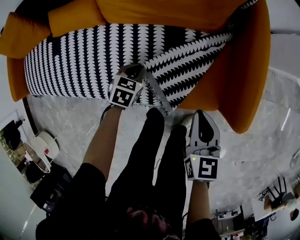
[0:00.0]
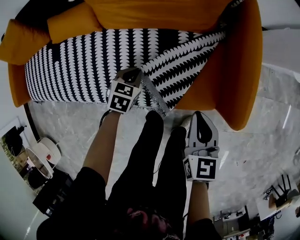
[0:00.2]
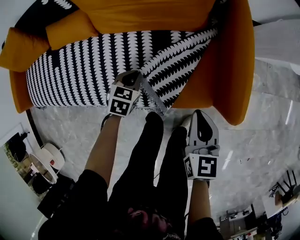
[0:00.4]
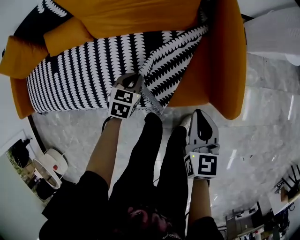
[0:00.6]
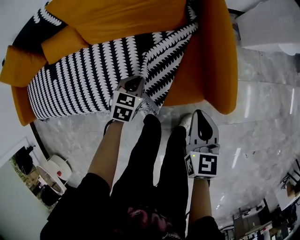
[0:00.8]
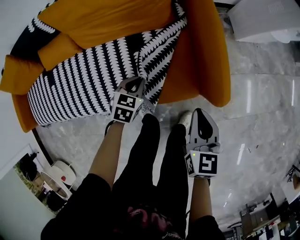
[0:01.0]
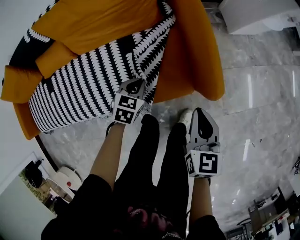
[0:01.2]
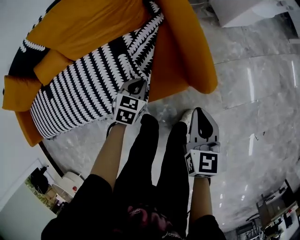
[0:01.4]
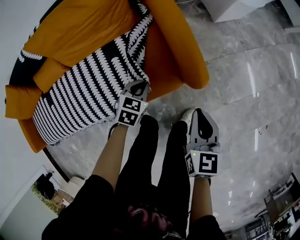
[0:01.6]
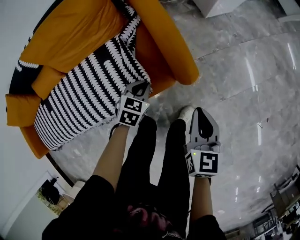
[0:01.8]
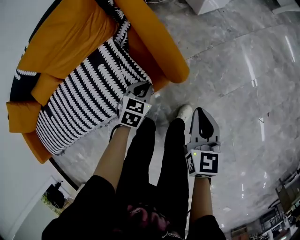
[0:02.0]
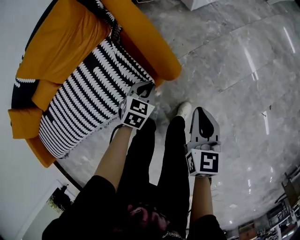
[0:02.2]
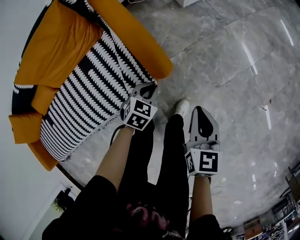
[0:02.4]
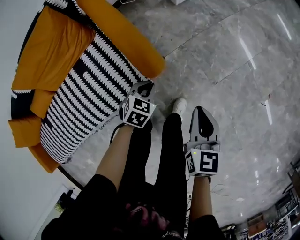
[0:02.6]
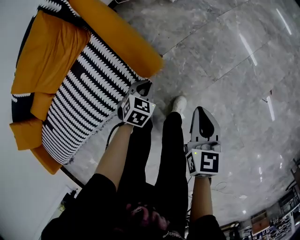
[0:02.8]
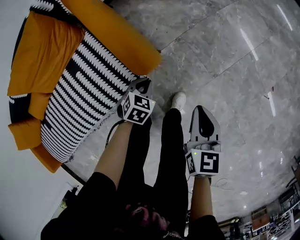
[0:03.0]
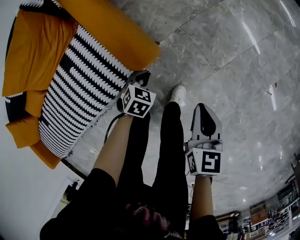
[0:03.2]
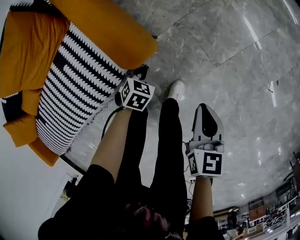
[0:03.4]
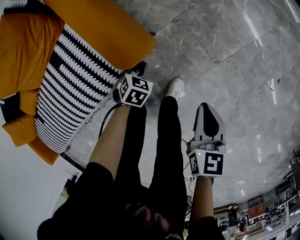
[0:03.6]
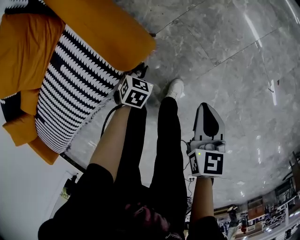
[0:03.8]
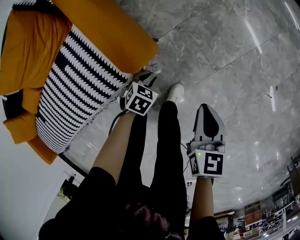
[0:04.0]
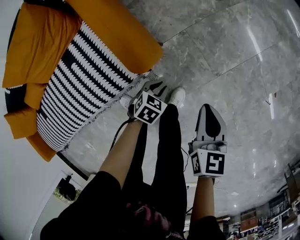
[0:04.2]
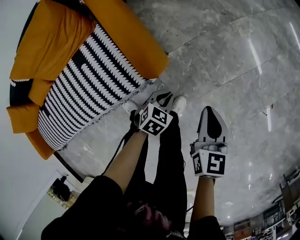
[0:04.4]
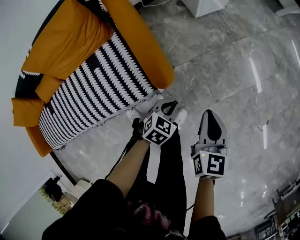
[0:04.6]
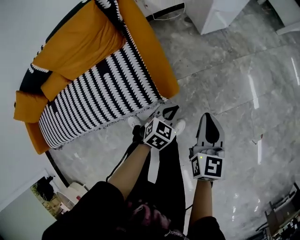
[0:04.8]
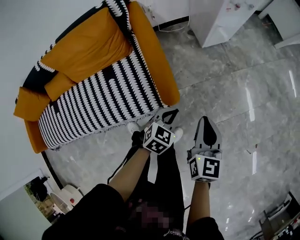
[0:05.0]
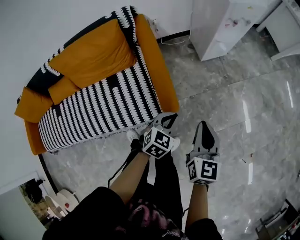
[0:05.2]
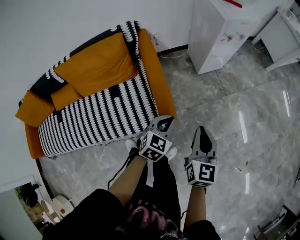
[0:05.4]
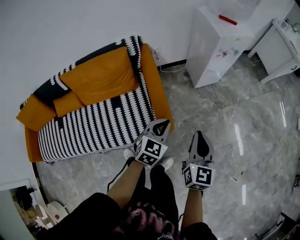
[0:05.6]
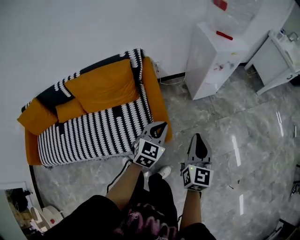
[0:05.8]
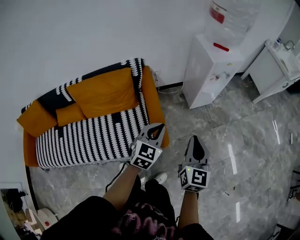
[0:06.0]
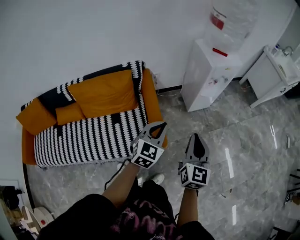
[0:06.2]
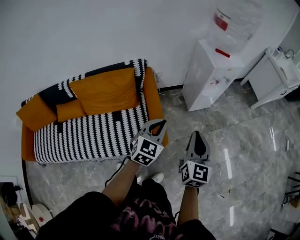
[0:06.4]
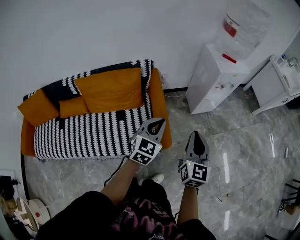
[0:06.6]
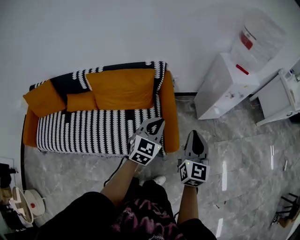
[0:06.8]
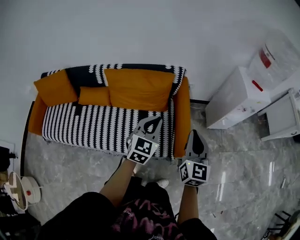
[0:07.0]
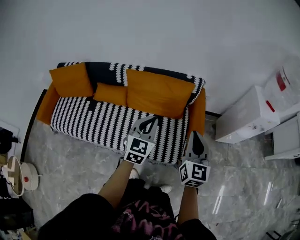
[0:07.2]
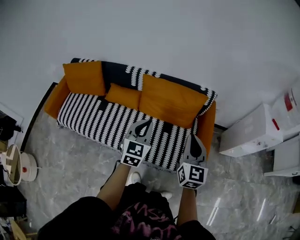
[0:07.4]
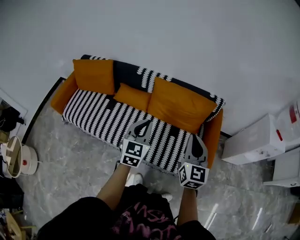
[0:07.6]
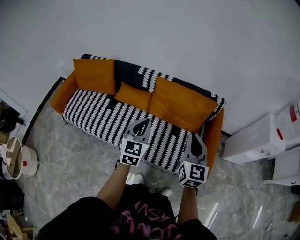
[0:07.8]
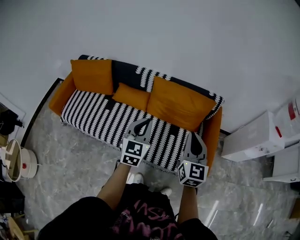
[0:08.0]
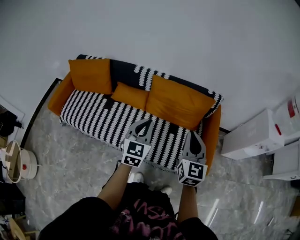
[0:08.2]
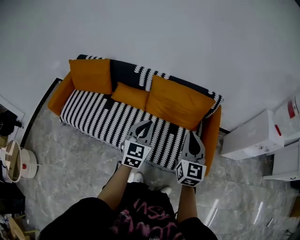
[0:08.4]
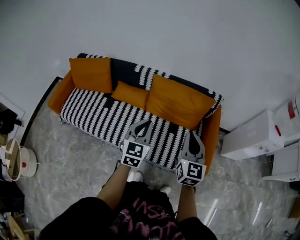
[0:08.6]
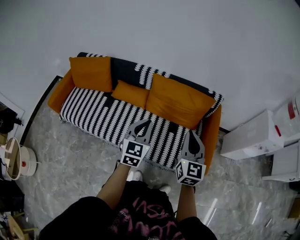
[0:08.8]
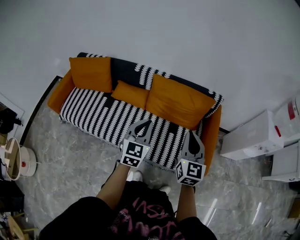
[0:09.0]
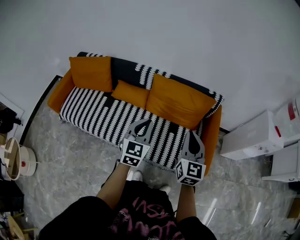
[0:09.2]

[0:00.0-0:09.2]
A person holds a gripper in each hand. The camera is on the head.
0:00.0 to 0:01.6: The left gripper ends up about 30 cm from where it was, and swivels roughly 30 degrees, while the right gripper moves approximately 25 cm, and rotates roughly 30 degrees.
0:01.6 to 0:03.0: Both grippers move to the right, some 20 cm. The left gripper turns by some 20 degrees.
0:03.0 to 0:04.6: The right gripper is displaced forward by some 5 cm; the left gripper travels upward and to the right by about 10 cm.
0:04.6 to 0:06.2: Both grippers travel together upward, approximately 35 cm. The left gripper points its fingers approximately 30 degrees further upward. The right gripper rotates about 20 degrees.
0:06.2 to 0:07.6: The two grippers travel together, roughly 50 cm. The right gripper swivels approximately 40 degrees, while the left gripper swivels roughly 50 degrees.
0:07.6 to 0:09.2: There are only small adjustments of the grippers.

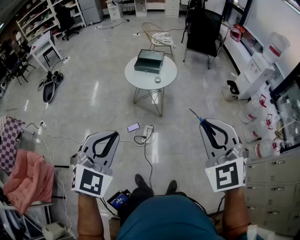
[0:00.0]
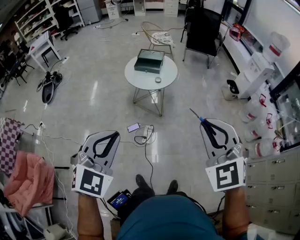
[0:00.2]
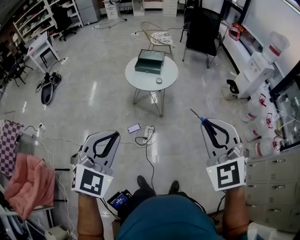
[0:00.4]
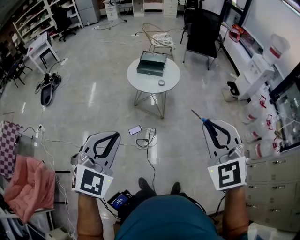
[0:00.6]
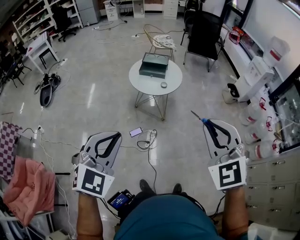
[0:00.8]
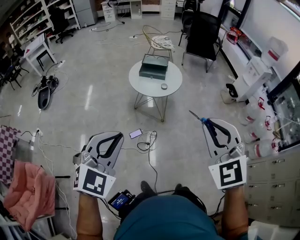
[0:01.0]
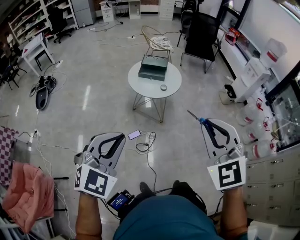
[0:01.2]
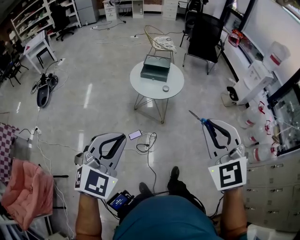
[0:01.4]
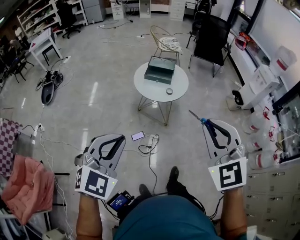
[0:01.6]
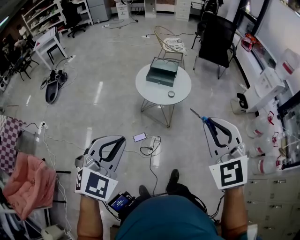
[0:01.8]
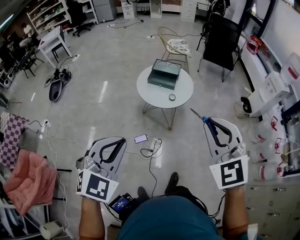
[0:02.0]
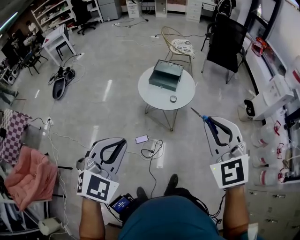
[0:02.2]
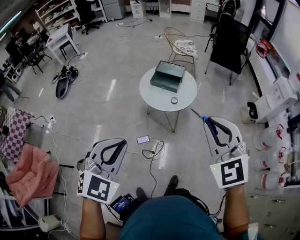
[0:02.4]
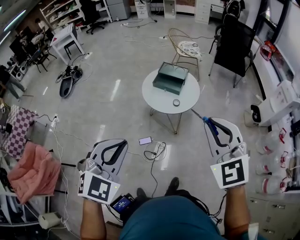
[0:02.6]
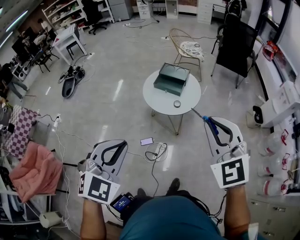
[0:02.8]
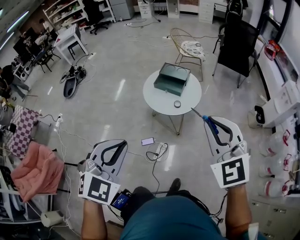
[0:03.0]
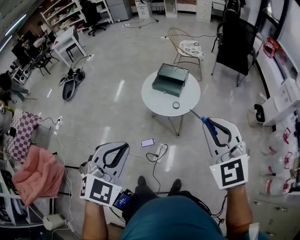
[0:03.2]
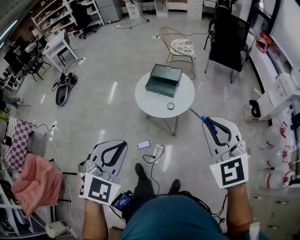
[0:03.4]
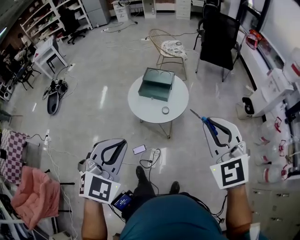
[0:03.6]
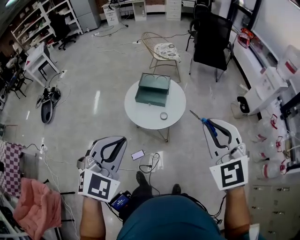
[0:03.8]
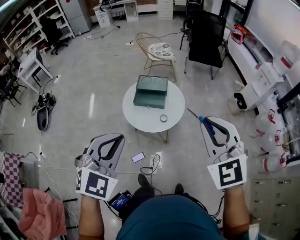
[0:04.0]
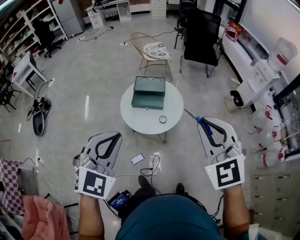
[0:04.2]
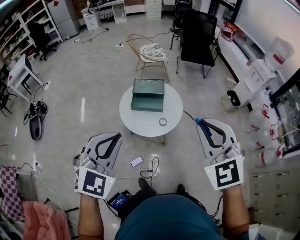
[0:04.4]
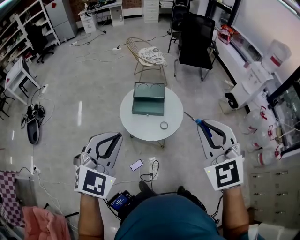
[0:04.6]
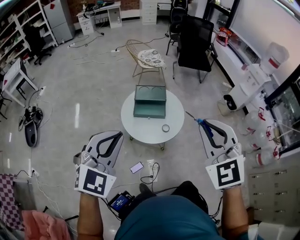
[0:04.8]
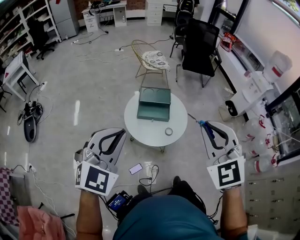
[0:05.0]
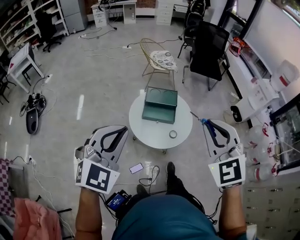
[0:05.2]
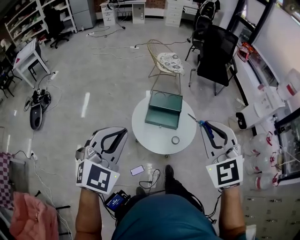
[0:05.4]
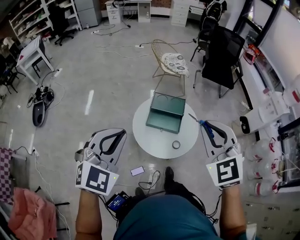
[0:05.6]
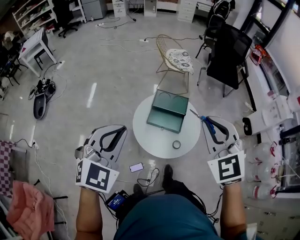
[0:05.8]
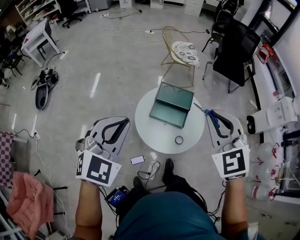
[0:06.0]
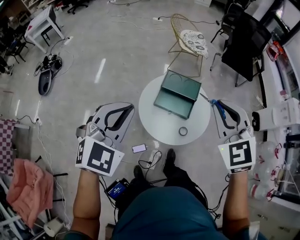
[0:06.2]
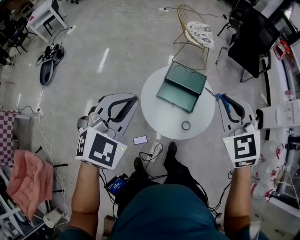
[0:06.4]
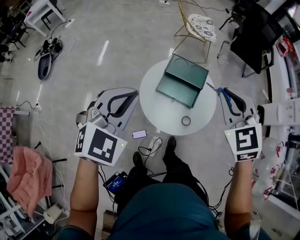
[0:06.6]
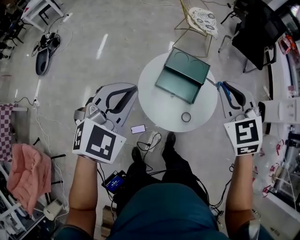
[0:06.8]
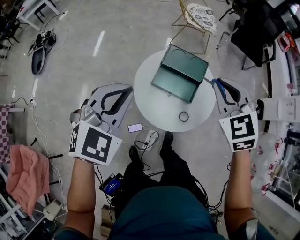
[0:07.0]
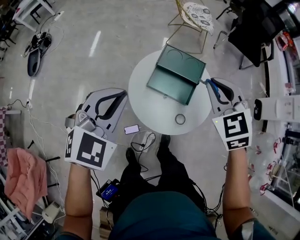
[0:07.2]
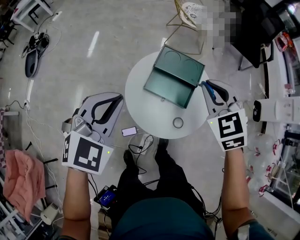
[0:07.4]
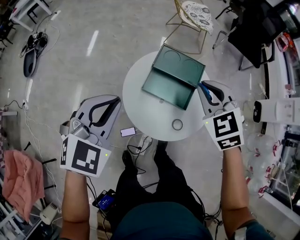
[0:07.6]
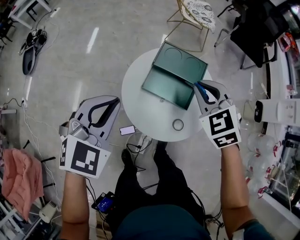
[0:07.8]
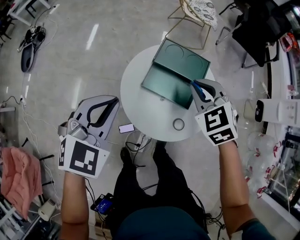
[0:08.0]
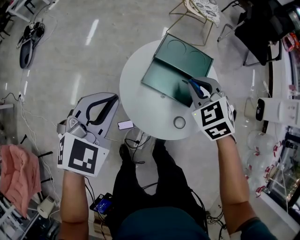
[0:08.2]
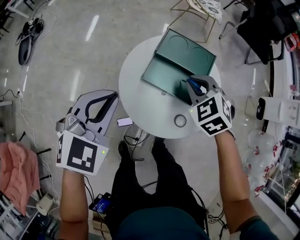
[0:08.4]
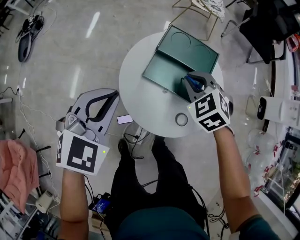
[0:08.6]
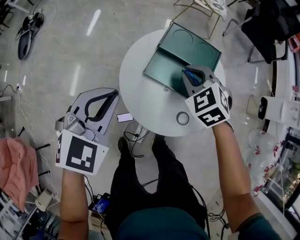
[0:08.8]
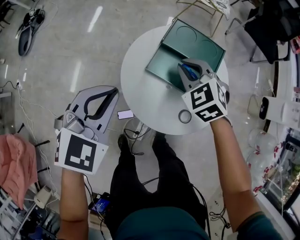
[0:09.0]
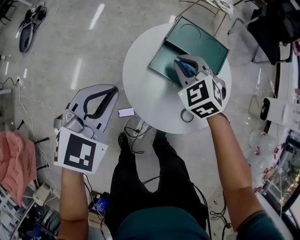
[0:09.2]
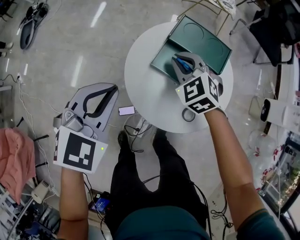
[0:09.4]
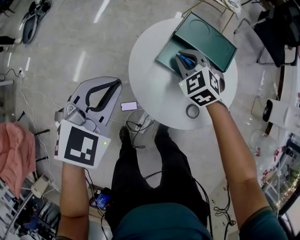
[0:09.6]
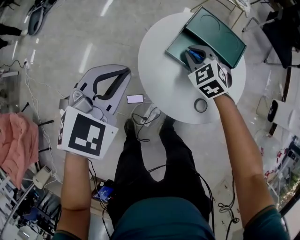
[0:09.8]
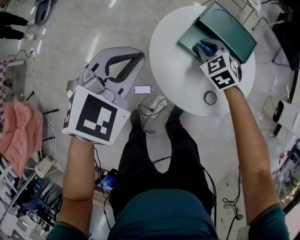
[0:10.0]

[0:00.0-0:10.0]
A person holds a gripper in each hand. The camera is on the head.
0:00.0 to 0:01.4: The two grippers go some 15 cm to the left and forward.
0:01.4 to 0:02.8: The left gripper heads to the right and forward, covering some 15 cm; the right gripper goes about 20 cm forward and to the right.
0:02.8 to 0:04.2: The left gripper shifts about 25 cm forward; the right gripper is displaced forward and to the left by roughly 15 cm.
0:04.2 to 0:05.8: Both grippers travel together forward and to the left, roughly 25 cm.
0:05.8 to 0:07.2: Both grippers travel together downward and forward, some 20 cm.
0:07.2 to 0:08.6: The right gripper is displaced downward by about 20 cm, and turns by some 20 degrees; the left gripper is displaced downward by roughly 15 cm.
0:08.6 to 0:10.0: The right gripper goes about 10 cm downward and to the left.

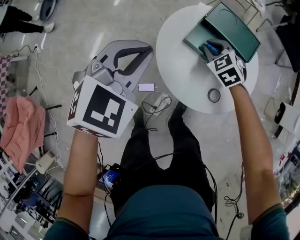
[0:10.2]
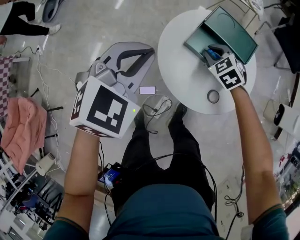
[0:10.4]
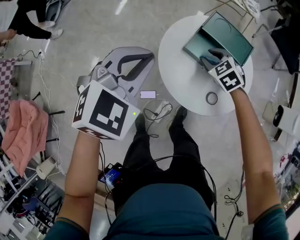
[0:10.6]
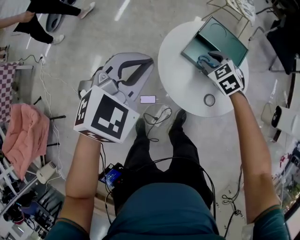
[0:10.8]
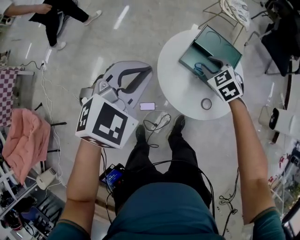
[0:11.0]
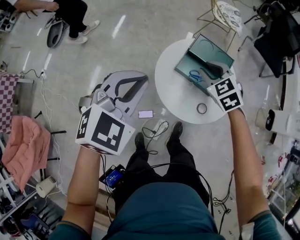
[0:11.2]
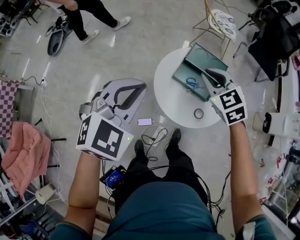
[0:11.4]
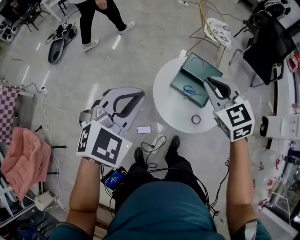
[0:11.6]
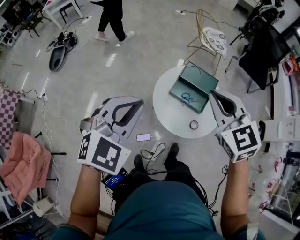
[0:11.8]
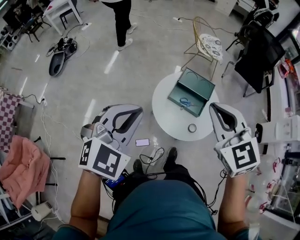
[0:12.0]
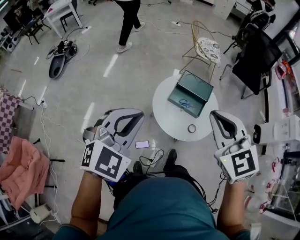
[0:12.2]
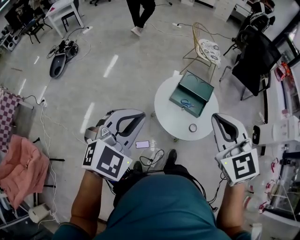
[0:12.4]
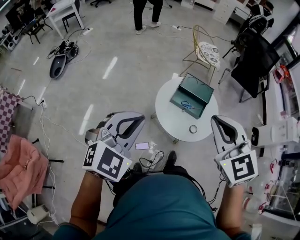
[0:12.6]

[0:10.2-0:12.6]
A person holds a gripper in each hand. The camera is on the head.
0:10.2 to 0:11.4: The left gripper shifts roughly 15 cm upward, while the right gripper goes roughly 25 cm upward.
0:11.4 to 0:12.6: The left gripper heads backward, upward and to the left, covering about 15 cm. The right gripper goes some 30 cm upward and backward.

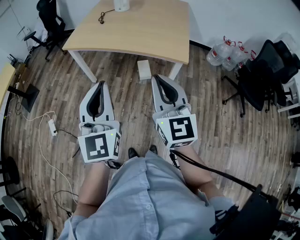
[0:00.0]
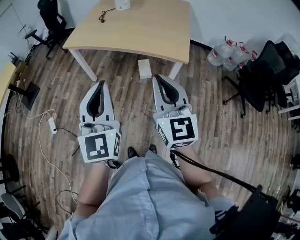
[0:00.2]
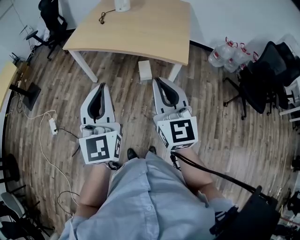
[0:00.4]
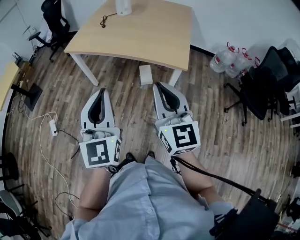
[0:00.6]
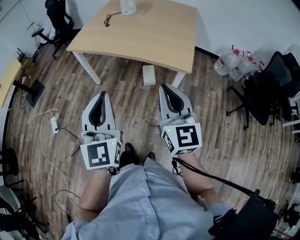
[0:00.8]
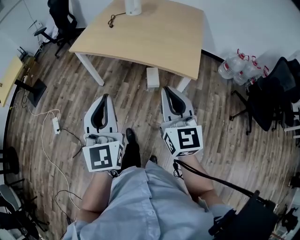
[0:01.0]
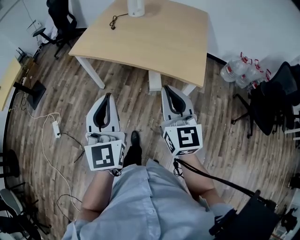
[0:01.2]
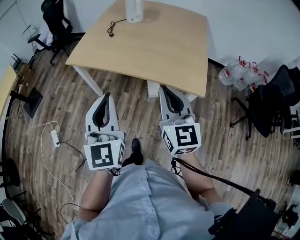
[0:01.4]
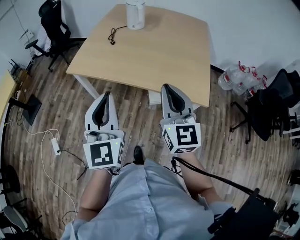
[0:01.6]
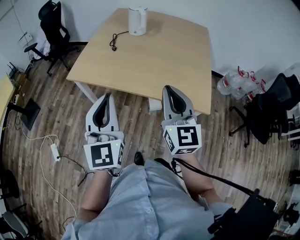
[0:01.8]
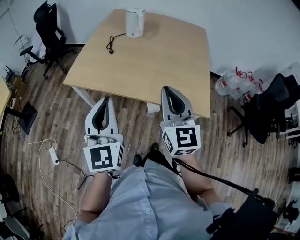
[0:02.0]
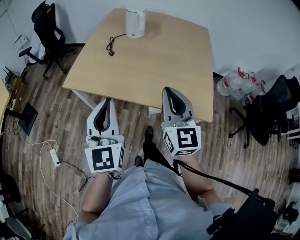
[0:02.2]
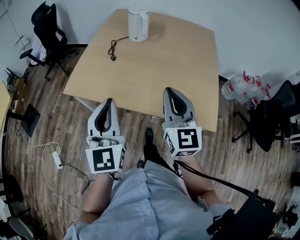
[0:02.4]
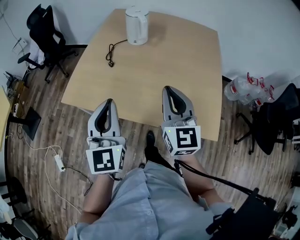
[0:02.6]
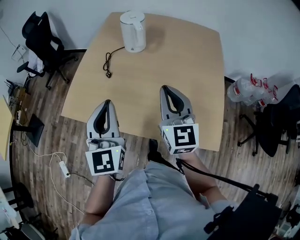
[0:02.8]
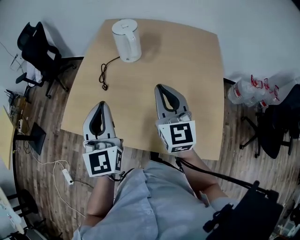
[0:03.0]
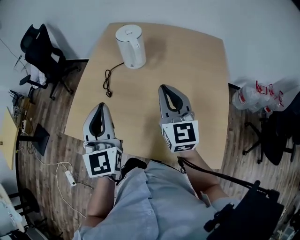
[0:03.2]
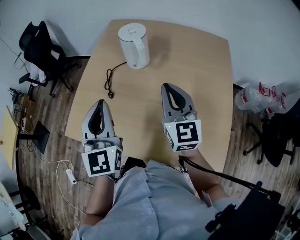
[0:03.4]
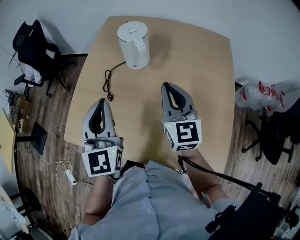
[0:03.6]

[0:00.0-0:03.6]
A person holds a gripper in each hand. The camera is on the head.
0:00.0 to 0:01.8: The grippers both shift forward by roughly 25 cm.
0:01.8 to 0:03.6: The grippers both shift forward by approximately 35 cm.
